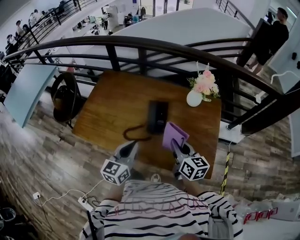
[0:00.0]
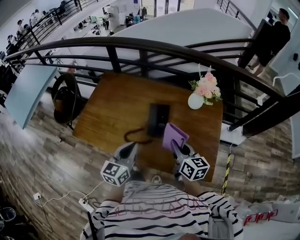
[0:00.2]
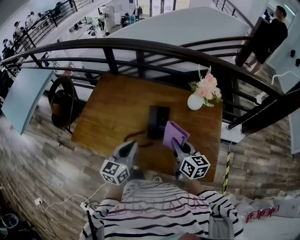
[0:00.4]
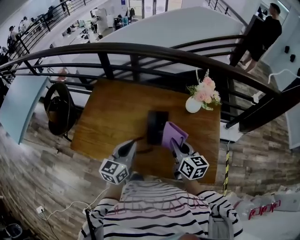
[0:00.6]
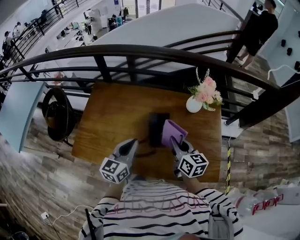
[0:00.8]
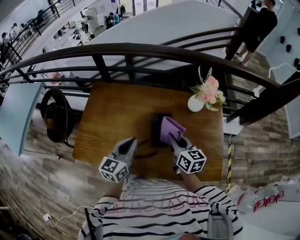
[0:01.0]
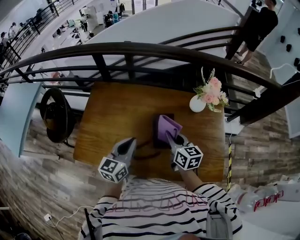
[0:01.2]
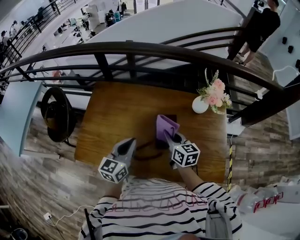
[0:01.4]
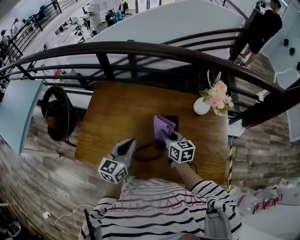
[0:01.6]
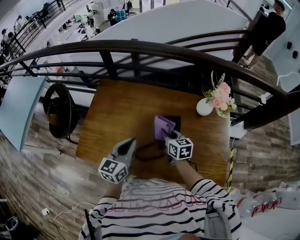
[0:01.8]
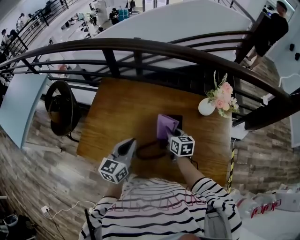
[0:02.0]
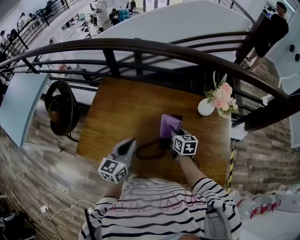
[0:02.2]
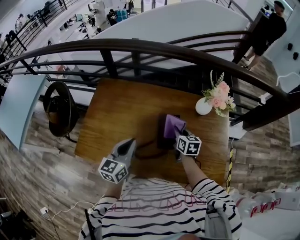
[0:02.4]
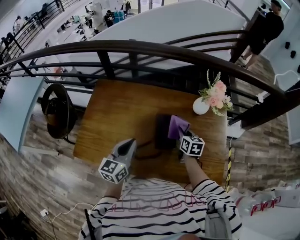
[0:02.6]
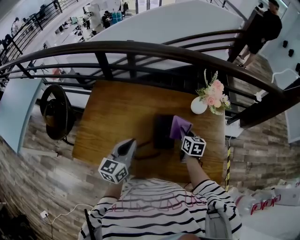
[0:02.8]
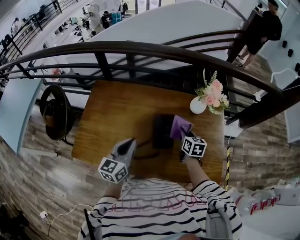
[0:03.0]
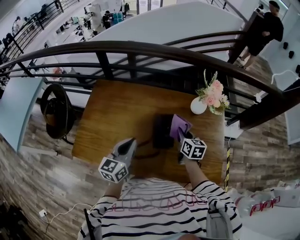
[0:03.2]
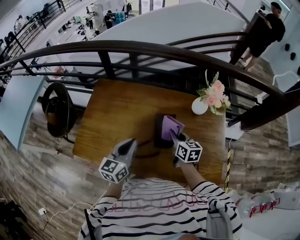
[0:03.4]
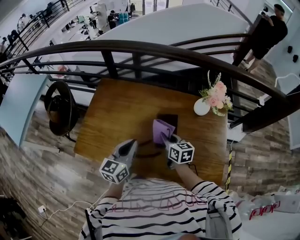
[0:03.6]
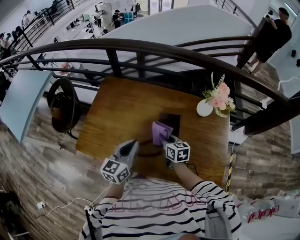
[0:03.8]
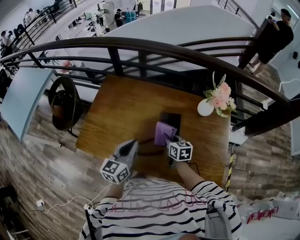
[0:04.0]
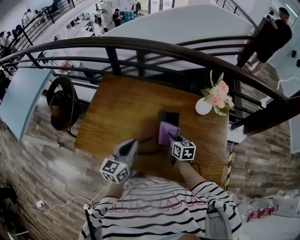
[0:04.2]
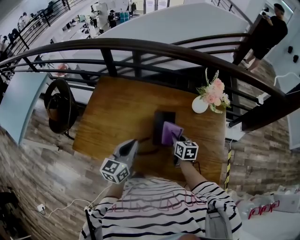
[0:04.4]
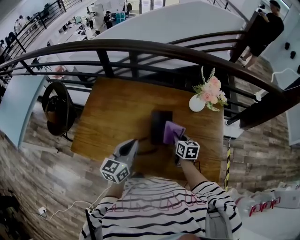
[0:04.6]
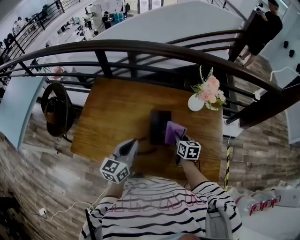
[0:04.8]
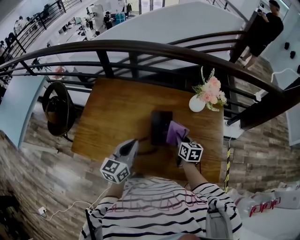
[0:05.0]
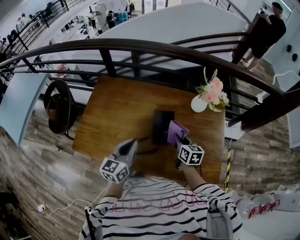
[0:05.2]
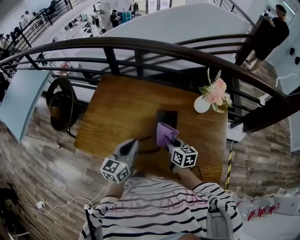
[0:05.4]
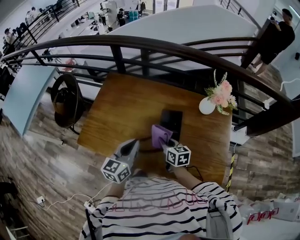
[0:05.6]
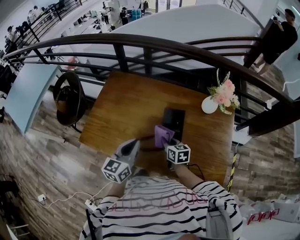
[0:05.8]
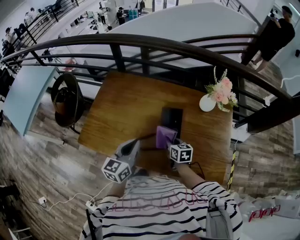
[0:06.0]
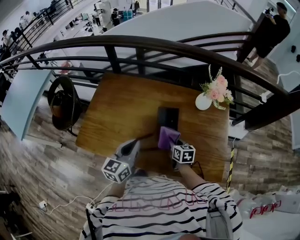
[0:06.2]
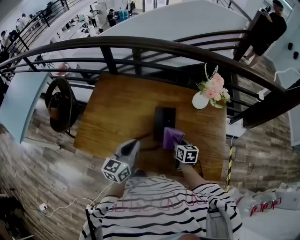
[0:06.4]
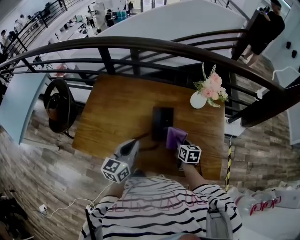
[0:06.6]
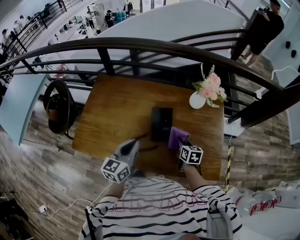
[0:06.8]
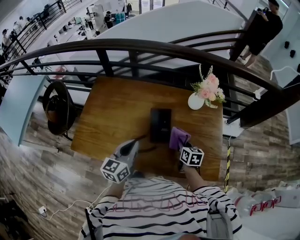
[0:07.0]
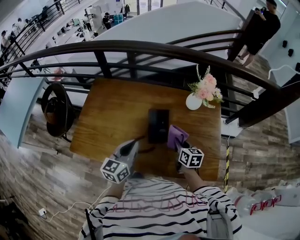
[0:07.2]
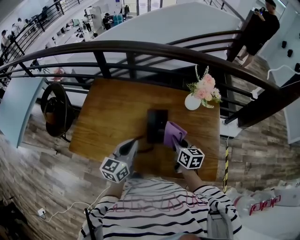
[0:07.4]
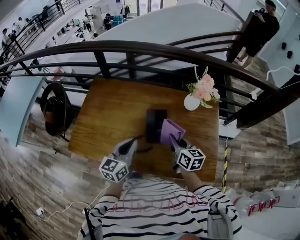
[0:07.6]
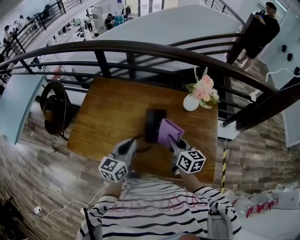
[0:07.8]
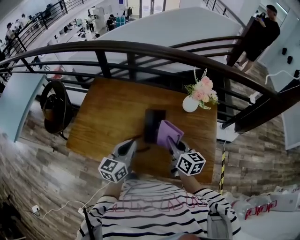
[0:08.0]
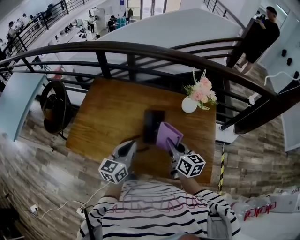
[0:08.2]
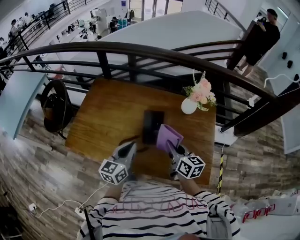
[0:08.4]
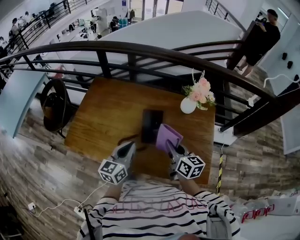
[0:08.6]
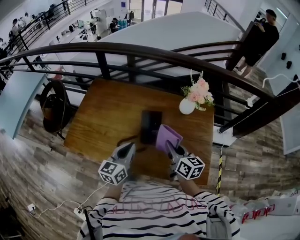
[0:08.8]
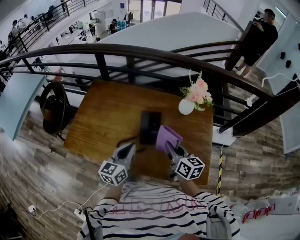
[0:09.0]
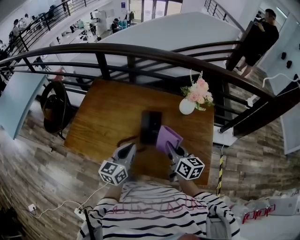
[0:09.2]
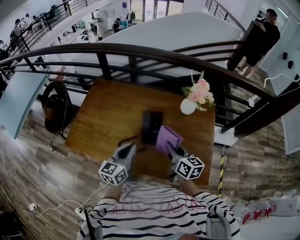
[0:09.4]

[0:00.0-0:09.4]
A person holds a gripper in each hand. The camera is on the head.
0:00.0 to 0:01.6: Both grippers move forward and to the left, roughly 20 cm.
0:01.6 to 0:03.2: The right gripper heads to the right, covering roughly 10 cm.
0:03.2 to 0:04.8: The right gripper travels downward by some 5 cm, and moves about 10 cm to the left and comes back.
0:04.8 to 0:06.2: The right gripper shifts some 5 cm to the left.
0:06.2 to 0:07.8: The right gripper goes some 15 cm upward, and turns by some 20 degrees.
0:07.8 to 0:09.4: The grippers make only small movements.

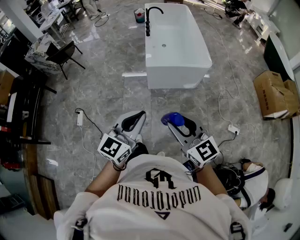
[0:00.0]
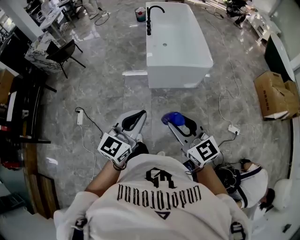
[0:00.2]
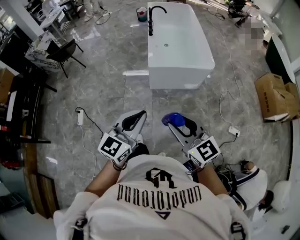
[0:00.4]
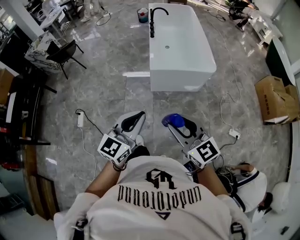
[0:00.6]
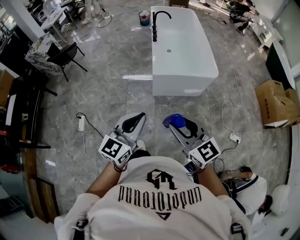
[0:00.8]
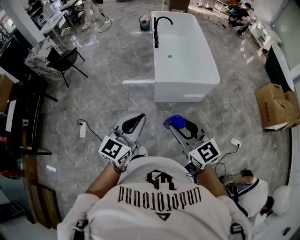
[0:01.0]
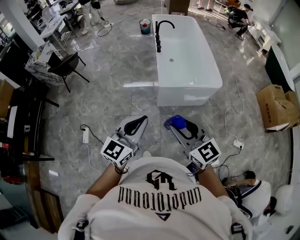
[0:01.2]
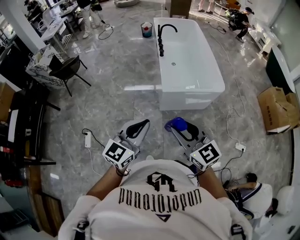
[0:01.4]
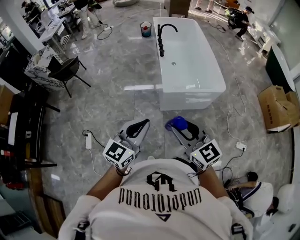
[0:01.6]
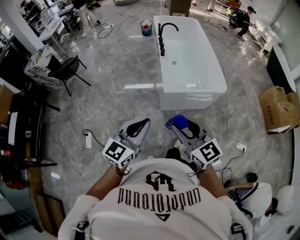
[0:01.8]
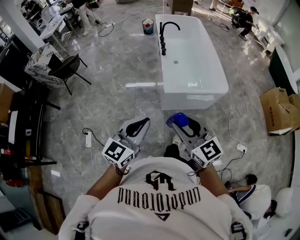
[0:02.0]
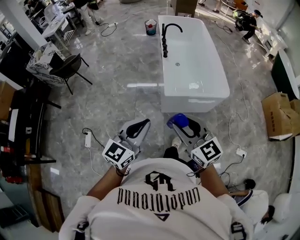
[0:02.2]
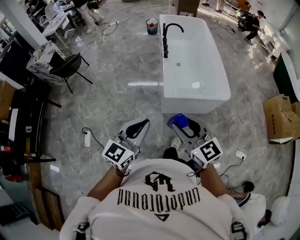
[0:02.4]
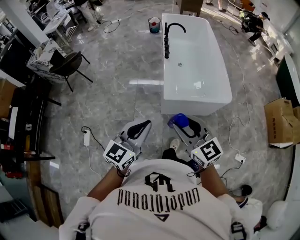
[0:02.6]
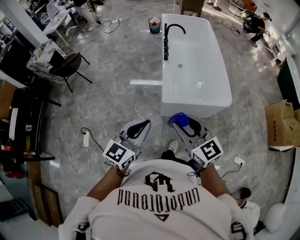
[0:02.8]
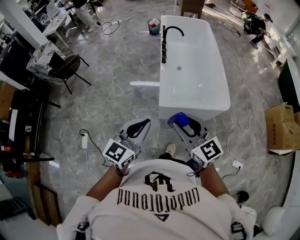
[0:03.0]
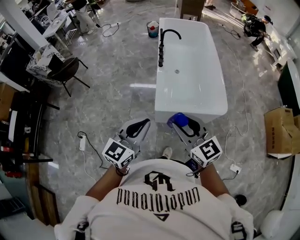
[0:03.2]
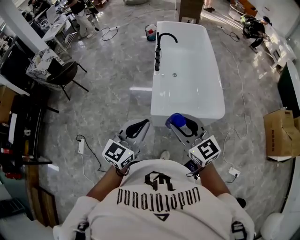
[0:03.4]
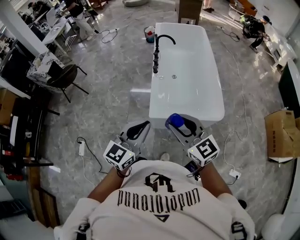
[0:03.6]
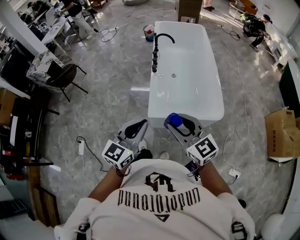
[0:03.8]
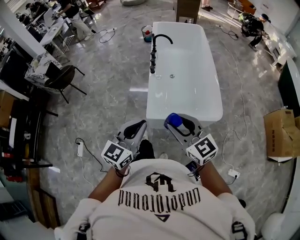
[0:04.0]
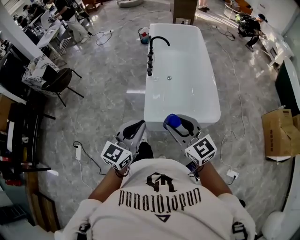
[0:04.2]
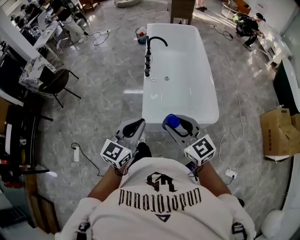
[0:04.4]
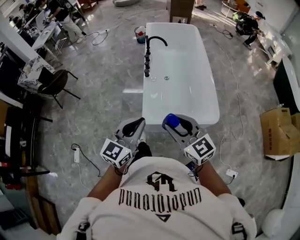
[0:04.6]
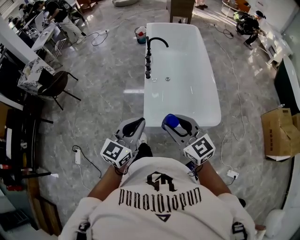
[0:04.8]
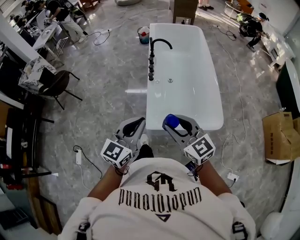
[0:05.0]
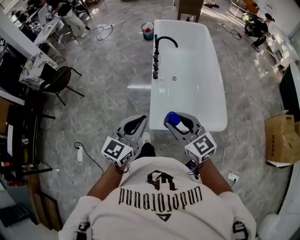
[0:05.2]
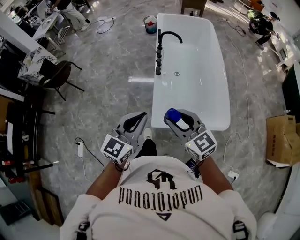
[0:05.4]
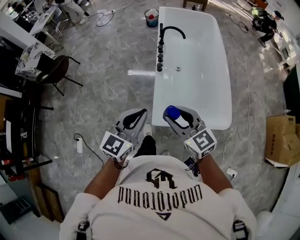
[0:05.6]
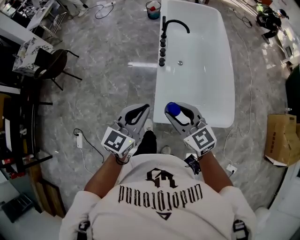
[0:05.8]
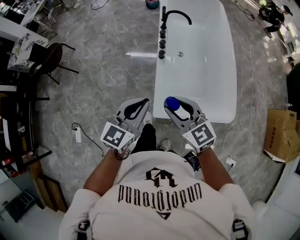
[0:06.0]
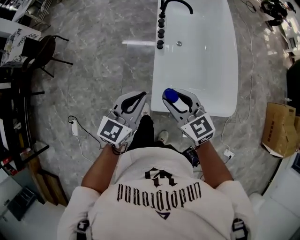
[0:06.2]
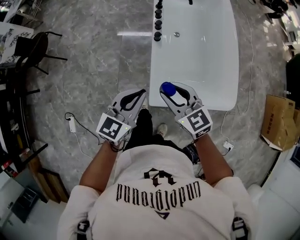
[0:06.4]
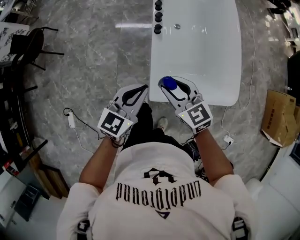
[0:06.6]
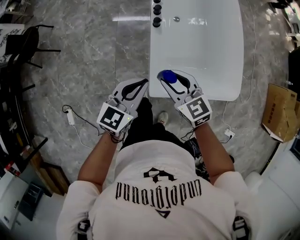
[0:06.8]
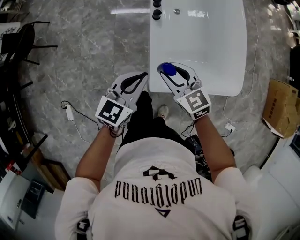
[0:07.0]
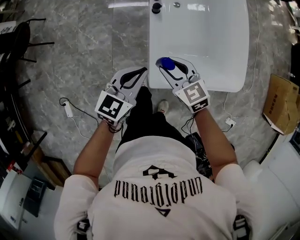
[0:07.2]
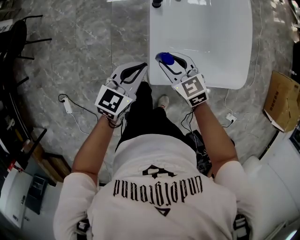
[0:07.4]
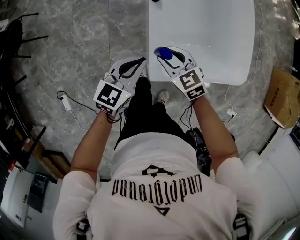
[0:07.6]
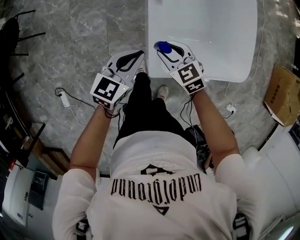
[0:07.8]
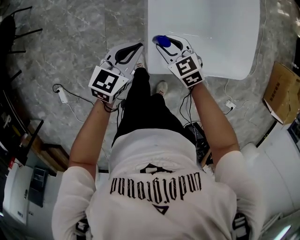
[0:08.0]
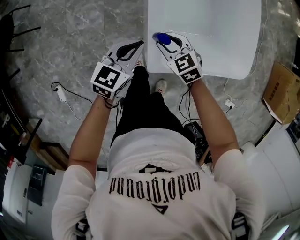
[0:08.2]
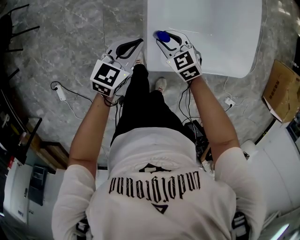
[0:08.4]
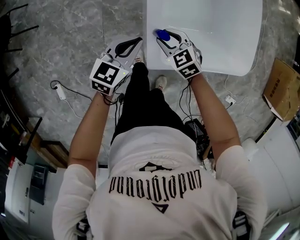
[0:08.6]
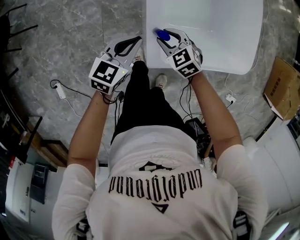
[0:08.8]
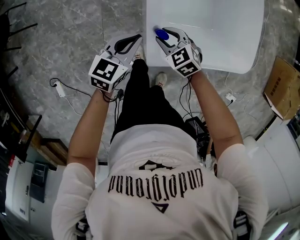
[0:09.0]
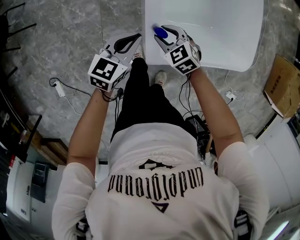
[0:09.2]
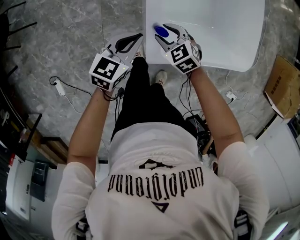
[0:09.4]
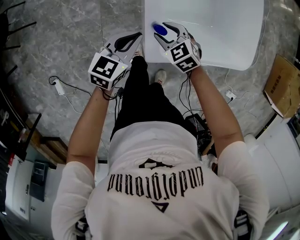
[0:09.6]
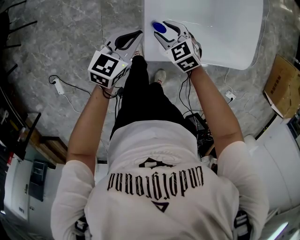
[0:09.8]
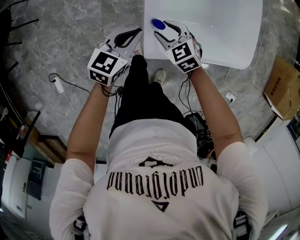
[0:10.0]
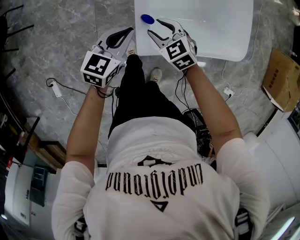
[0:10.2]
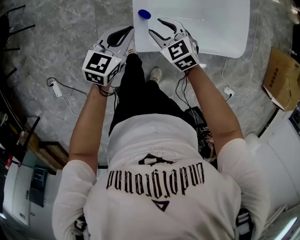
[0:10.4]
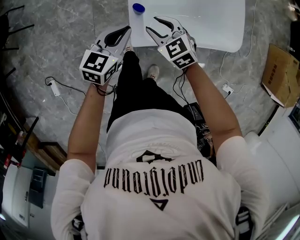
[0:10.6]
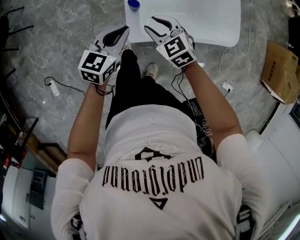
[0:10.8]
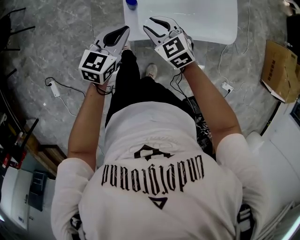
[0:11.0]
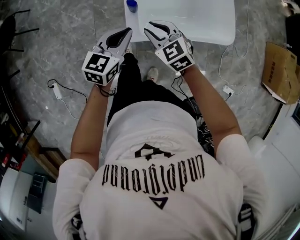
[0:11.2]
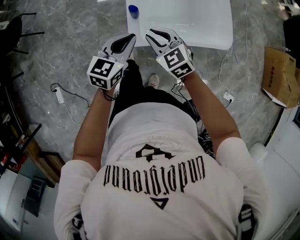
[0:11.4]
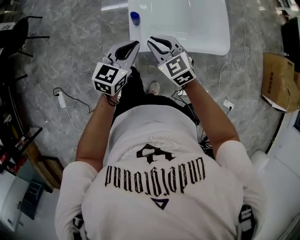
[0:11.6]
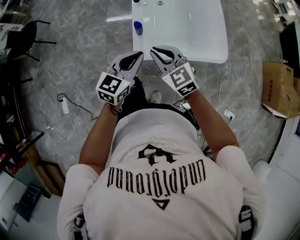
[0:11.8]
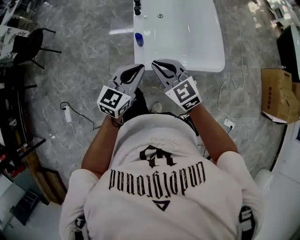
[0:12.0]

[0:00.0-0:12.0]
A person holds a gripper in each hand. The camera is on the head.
0:00.0 to 0:01.6: The grippers both shift forward and to the left by about 30 cm.
0:01.6 to 0:03.0: Both grippers travel together forward and to the right, some 25 cm.
0:03.0 to 0:04.4: The right gripper travels to the right and forward by some 15 cm. The left gripper moves forward and to the right, roughly 20 cm.
0:04.4 to 0:06.0: The right gripper moves forward and downward, approximately 25 cm; the left gripper heads forward, covering some 25 cm.
0:06.0 to 0:07.6: Both grippers move downward, about 30 cm. The right gripper turns by some 20 degrees, while the left gripper changes its angle by roughly 20 degrees.
0:07.6 to 0:09.0: The grippers both shift downward by about 10 cm.
0:09.0 to 0:10.4: The right gripper is displaced upward by approximately 5 cm. Meanwhile the left gripper shifts some 5 cm backward.
0:10.4 to 0:12.0: The grippers both shift upward and backward by some 30 cm. The right gripper turns by roughly 20 degrees, and closes up.

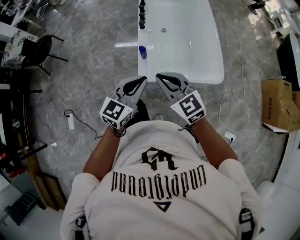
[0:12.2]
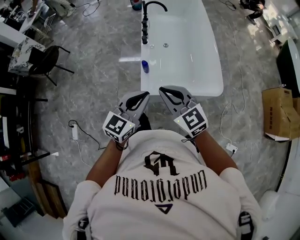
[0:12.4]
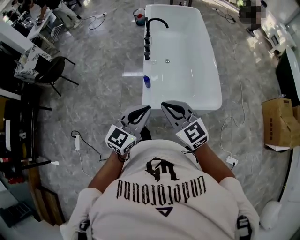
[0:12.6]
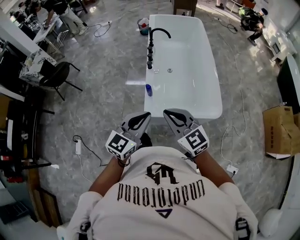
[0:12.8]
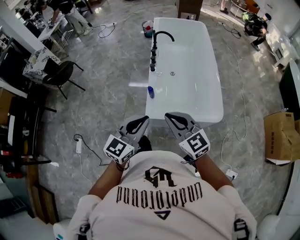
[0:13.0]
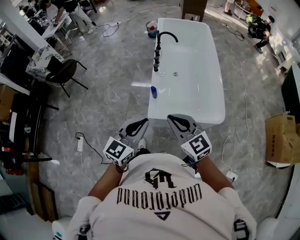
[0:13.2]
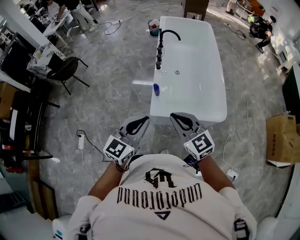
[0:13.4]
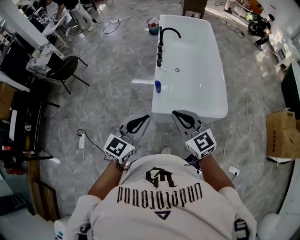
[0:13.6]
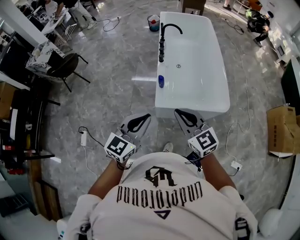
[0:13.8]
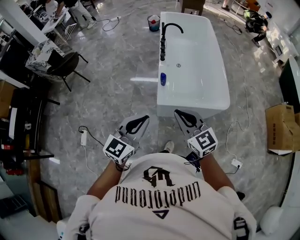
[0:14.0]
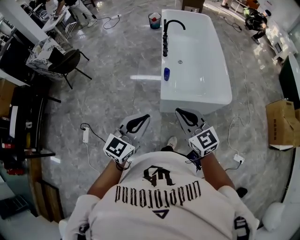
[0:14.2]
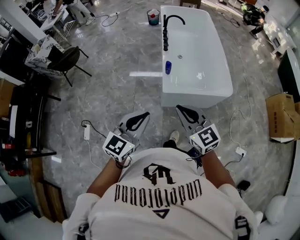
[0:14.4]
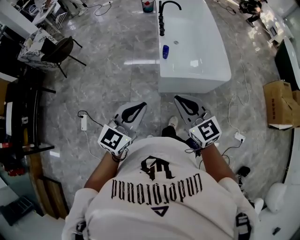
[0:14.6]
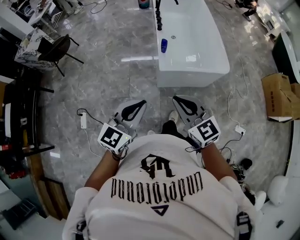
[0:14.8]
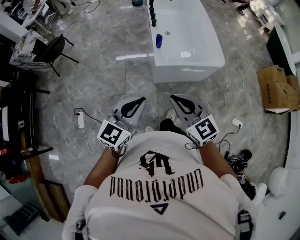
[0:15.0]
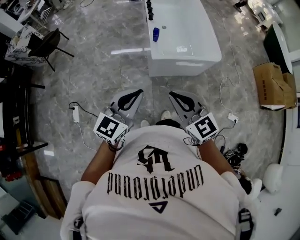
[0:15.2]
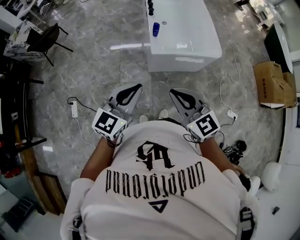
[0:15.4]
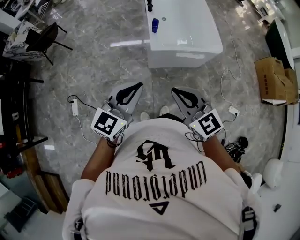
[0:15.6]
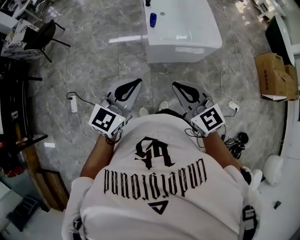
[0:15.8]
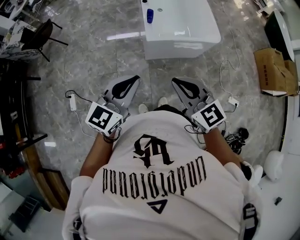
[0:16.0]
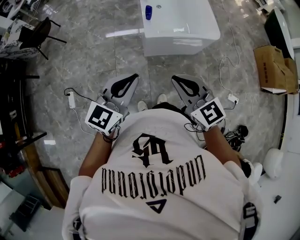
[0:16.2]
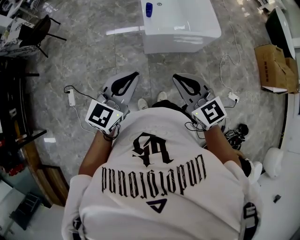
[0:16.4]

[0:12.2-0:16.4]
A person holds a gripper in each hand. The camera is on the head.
0:12.2 to 0:13.6: The two grippers go roughly 15 cm upward and backward.
0:13.6 to 0:15.0: The two grippers go some 30 cm backward and to the left.
0:15.0 to 0:16.4: The right gripper ends up about 5 cm from where it was.
